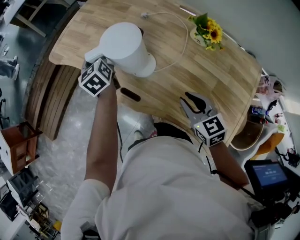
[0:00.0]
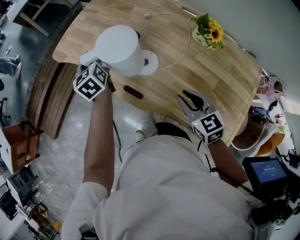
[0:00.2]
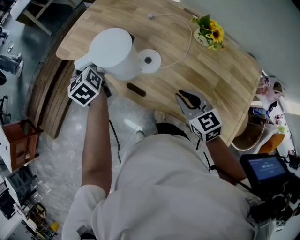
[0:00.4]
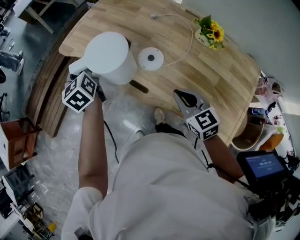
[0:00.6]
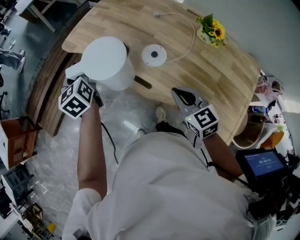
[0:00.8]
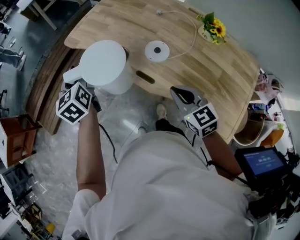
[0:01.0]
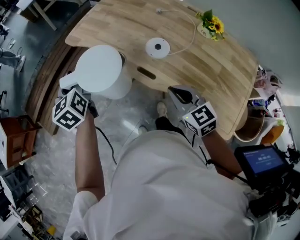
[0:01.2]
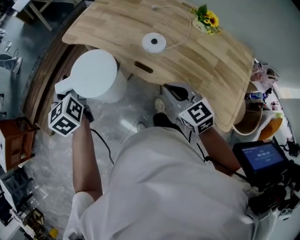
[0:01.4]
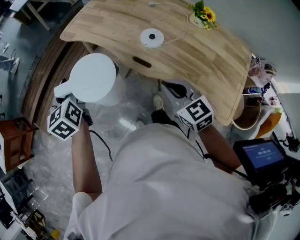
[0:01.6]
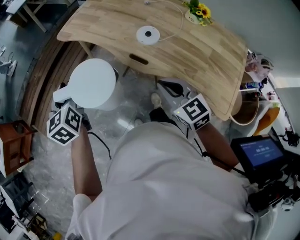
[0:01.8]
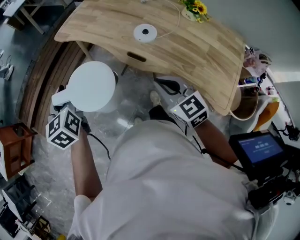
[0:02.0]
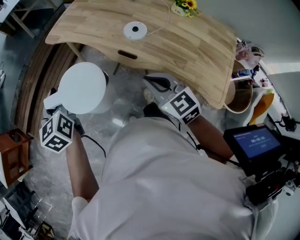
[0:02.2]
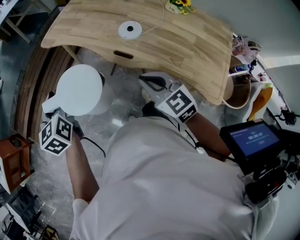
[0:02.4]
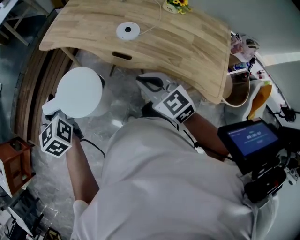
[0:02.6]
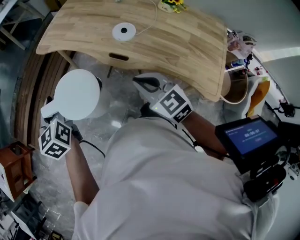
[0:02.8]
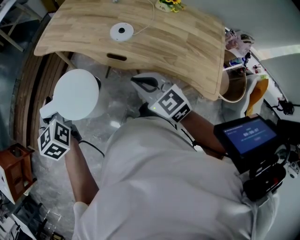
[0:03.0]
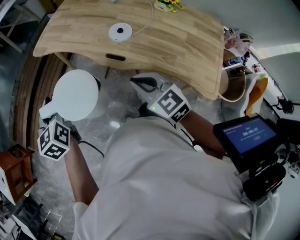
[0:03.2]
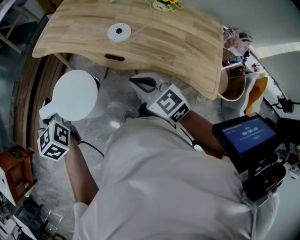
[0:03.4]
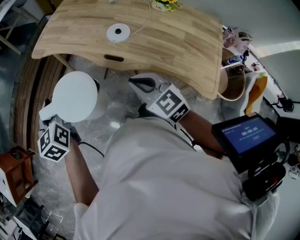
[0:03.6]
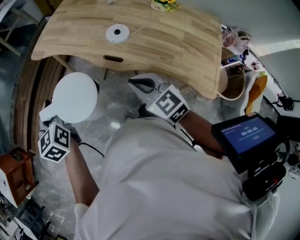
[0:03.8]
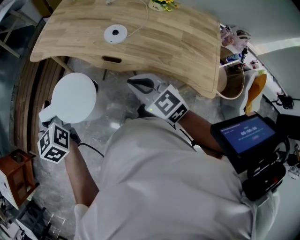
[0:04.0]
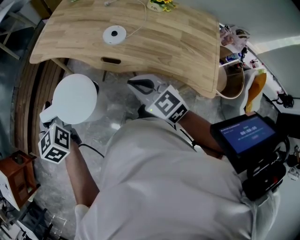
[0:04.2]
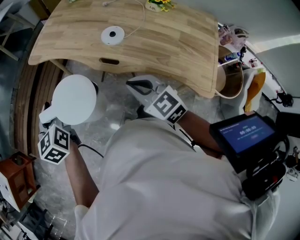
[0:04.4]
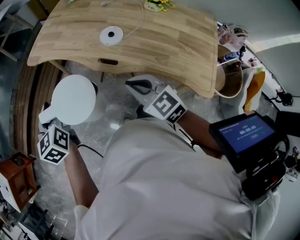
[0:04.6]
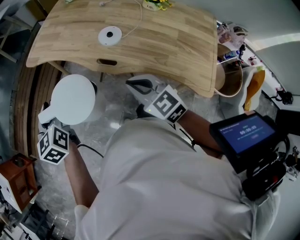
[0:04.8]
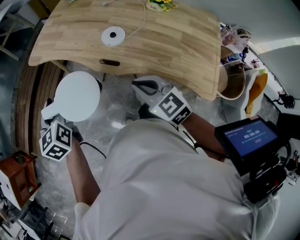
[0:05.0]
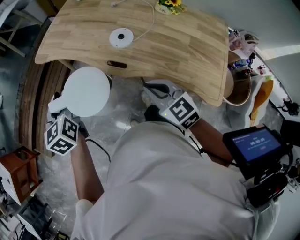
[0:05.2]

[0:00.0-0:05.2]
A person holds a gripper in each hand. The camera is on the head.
0:00.0 to 0:01.8: The right gripper heads to the left, covering some 20 cm, and closes up. Meanwhile the left gripper goes some 35 cm to the left and backward.
0:01.8 to 0:03.4: The right gripper moves to the left, about 5 cm.
0:03.4 to 0:05.2: The grippers both shift to the right by roughly 5 cm.

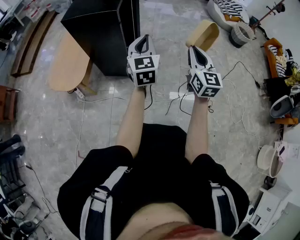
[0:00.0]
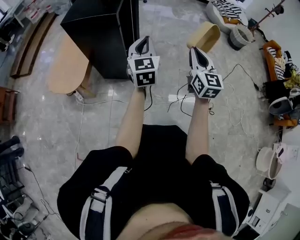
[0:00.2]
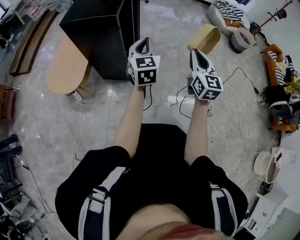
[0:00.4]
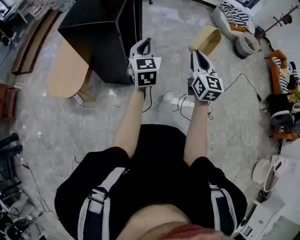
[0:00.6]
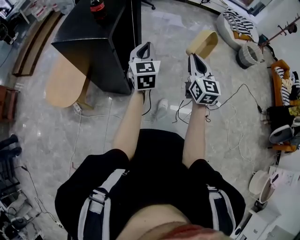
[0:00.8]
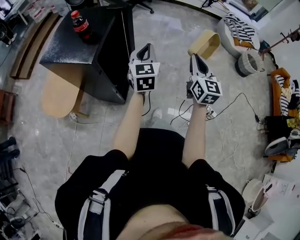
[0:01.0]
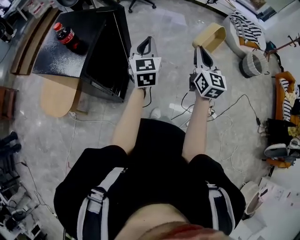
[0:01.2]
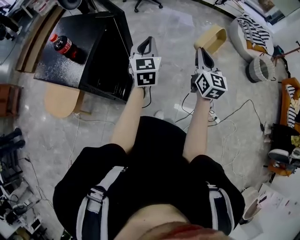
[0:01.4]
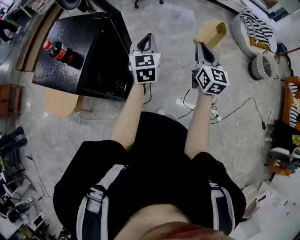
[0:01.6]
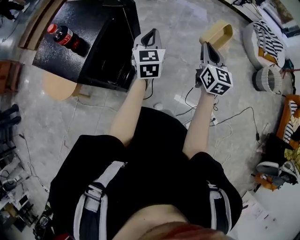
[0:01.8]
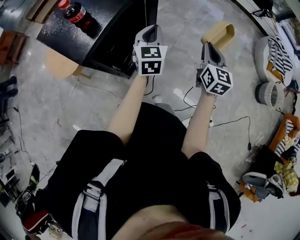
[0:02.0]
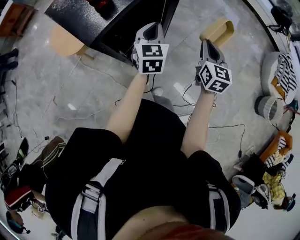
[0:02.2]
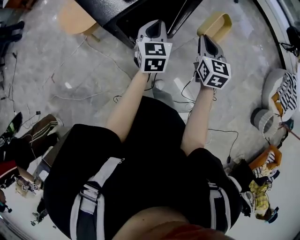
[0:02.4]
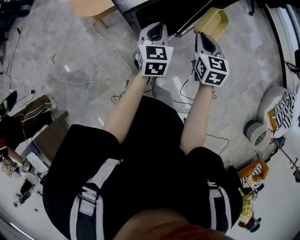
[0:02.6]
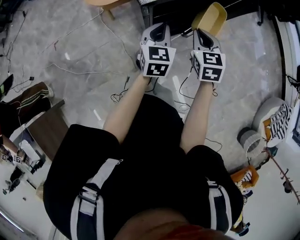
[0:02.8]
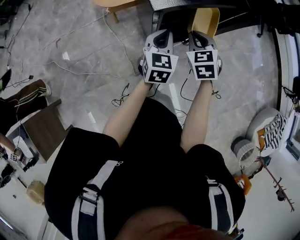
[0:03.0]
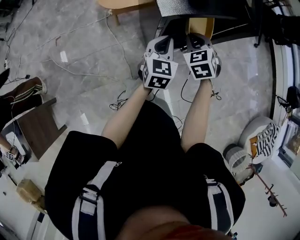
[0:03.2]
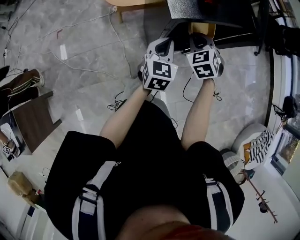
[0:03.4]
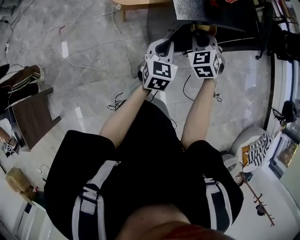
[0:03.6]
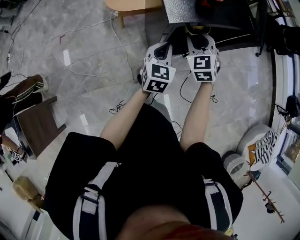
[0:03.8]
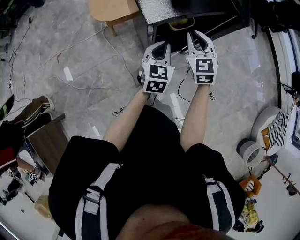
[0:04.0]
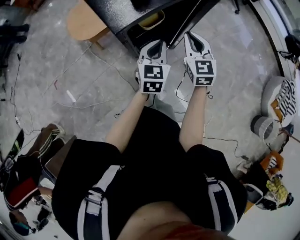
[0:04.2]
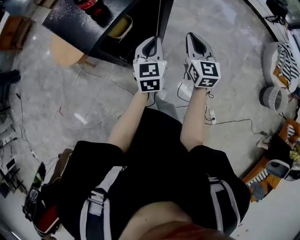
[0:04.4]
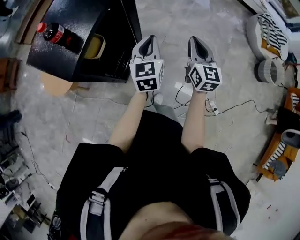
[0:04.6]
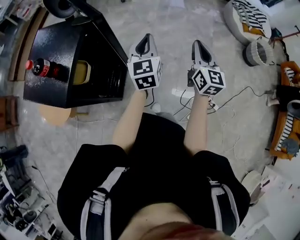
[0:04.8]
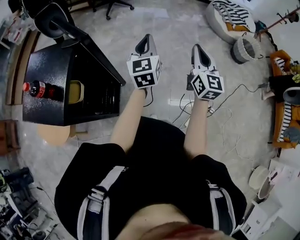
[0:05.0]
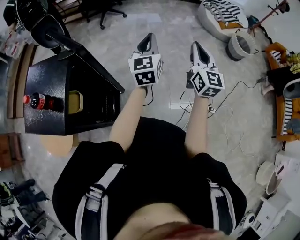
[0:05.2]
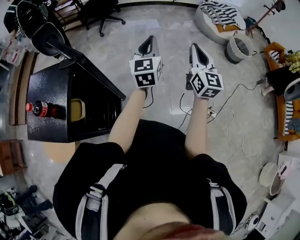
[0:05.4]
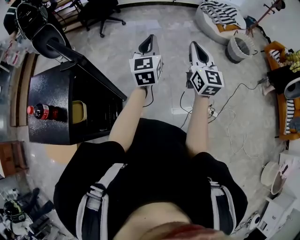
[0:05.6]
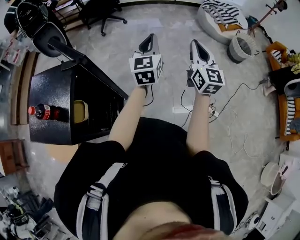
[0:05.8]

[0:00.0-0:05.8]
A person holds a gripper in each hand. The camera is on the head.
0:00.0 to 0:01.4: The two grippers travel together, forward, some 50 cm.
0:01.4 to 0:02.8: The right gripper ends up approximately 40 cm from where it was, and swivels about 70 degrees. Meanwhile the left gripper shifts by approximately 30 cm, and changes its angle by approximately 50 degrees.
0:02.8 to 0:04.4: The left gripper shifts by about 15 cm, and rotates some 30 degrees. Meanwhile the right gripper shifts by roughly 20 cm, and rotates roughly 40 degrees.
0:04.4 to 0:05.8: The left gripper changes place by about 35 cm, and turns by approximately 40 degrees. The right gripper shifts by roughly 35 cm, and rotates about 40 degrees.

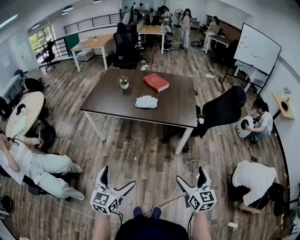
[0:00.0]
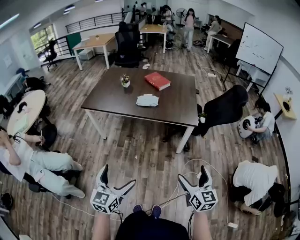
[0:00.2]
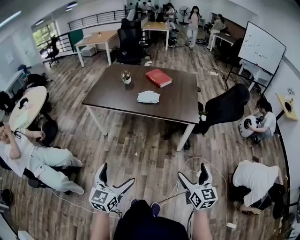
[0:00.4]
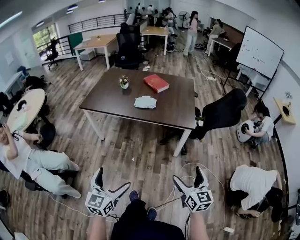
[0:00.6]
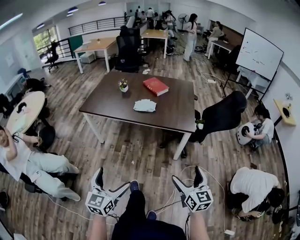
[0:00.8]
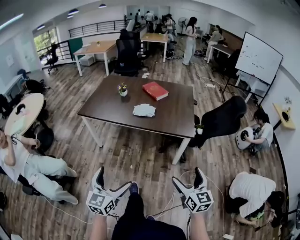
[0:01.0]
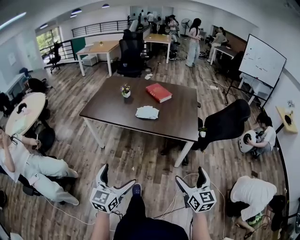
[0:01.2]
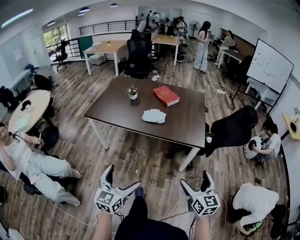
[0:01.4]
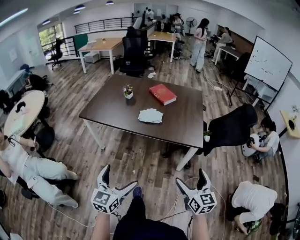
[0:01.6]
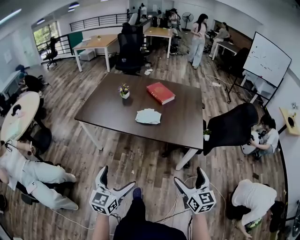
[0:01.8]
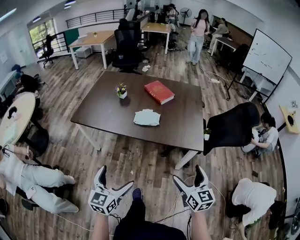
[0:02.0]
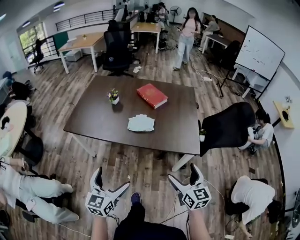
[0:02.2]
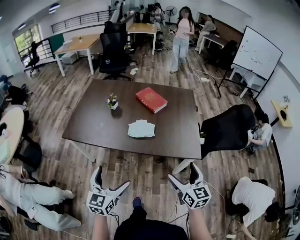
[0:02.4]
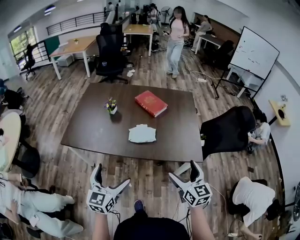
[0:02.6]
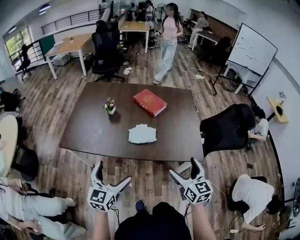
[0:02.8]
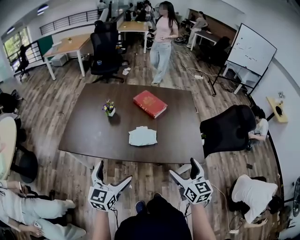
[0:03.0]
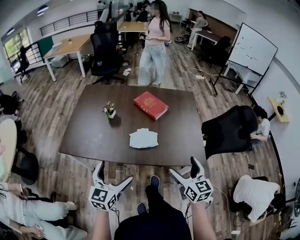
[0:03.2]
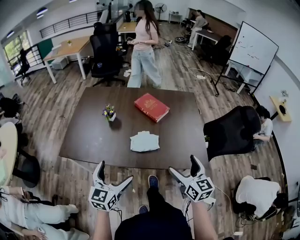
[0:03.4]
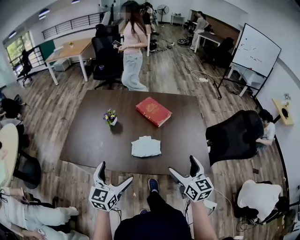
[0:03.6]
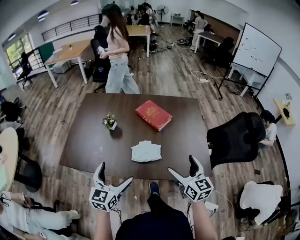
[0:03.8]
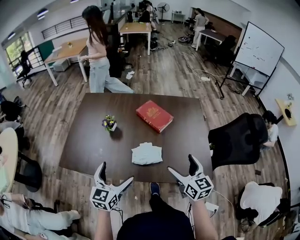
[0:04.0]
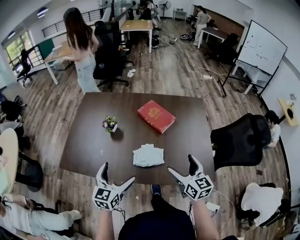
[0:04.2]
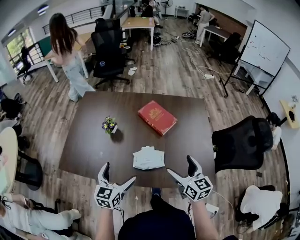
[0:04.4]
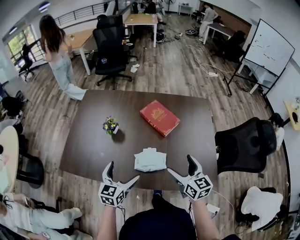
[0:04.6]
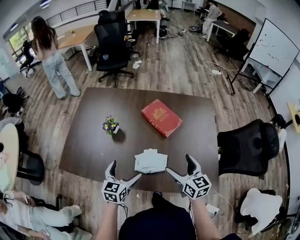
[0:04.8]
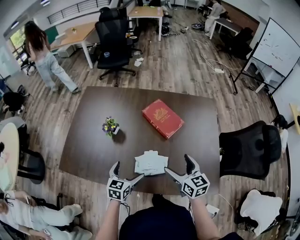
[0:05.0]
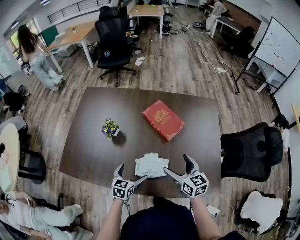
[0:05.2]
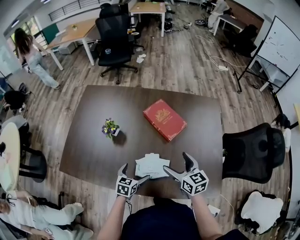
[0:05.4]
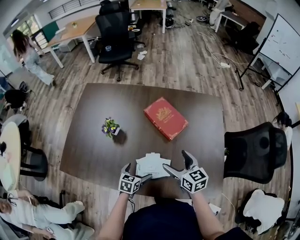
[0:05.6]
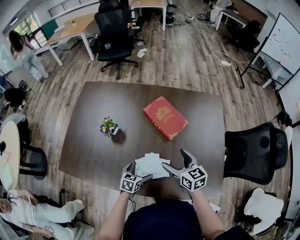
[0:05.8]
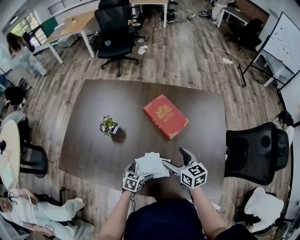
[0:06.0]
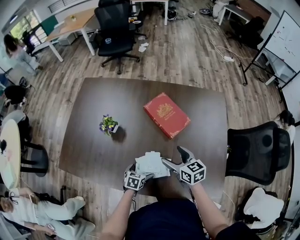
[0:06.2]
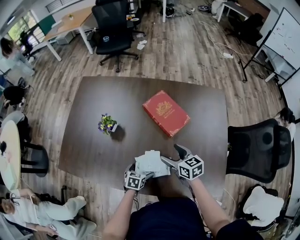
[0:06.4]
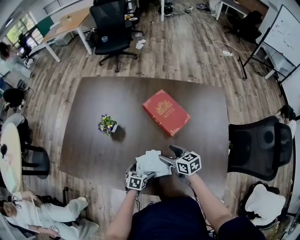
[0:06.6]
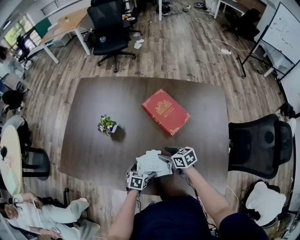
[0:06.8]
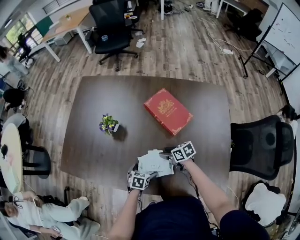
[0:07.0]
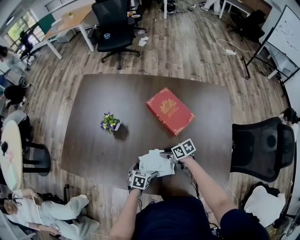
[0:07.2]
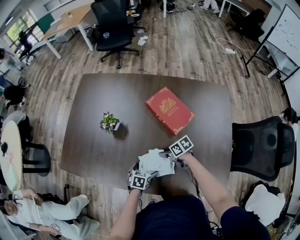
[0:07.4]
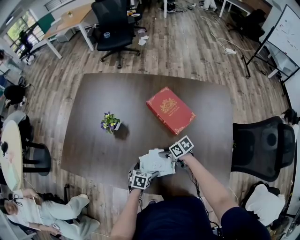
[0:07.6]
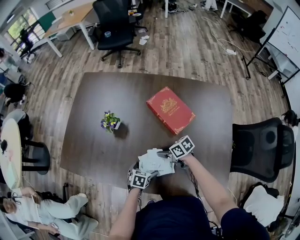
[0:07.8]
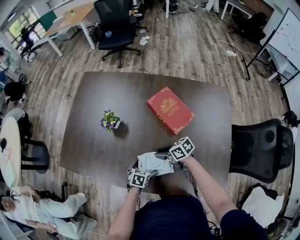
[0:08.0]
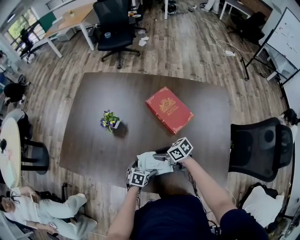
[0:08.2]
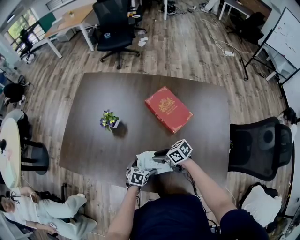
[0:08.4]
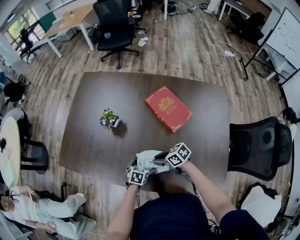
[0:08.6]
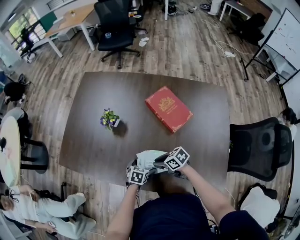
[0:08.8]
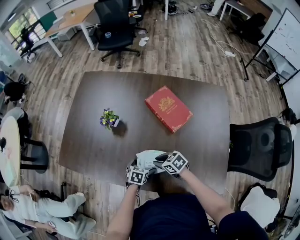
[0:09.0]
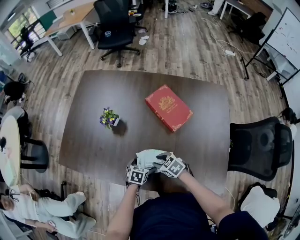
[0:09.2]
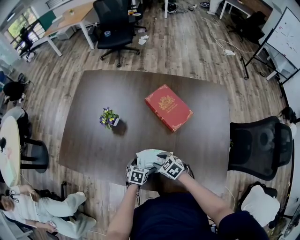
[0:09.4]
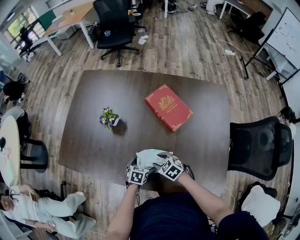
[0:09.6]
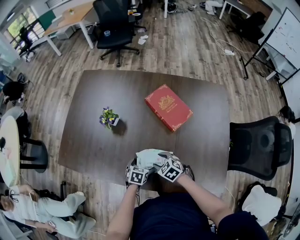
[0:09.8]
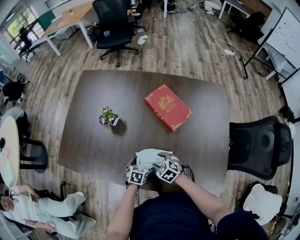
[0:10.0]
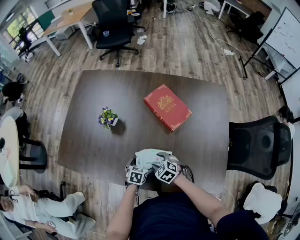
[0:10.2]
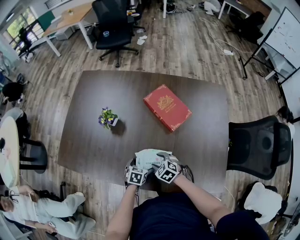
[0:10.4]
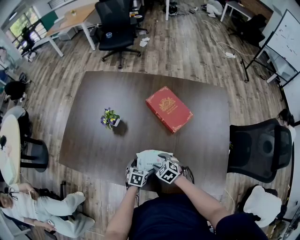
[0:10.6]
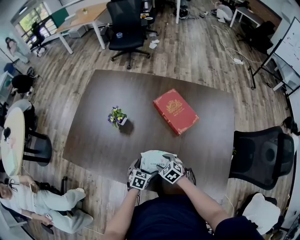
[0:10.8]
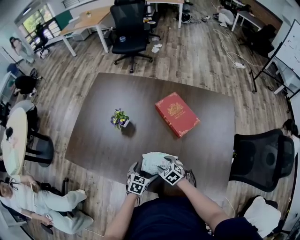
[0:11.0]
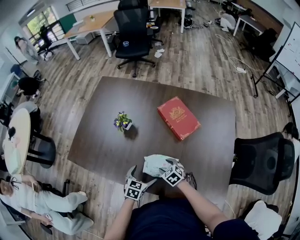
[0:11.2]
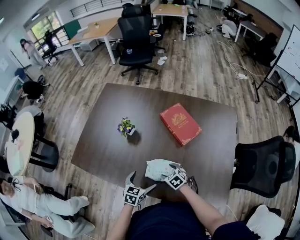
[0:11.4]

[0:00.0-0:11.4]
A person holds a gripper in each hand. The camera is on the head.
0:00.0 to 0:01.4: Both grippers travel together forward, approximately 10 cm.
0:01.4 to 0:02.8: Both grippers travel together forward, roughly 30 cm.
0:02.8 to 0:04.2: The two grippers go some 20 cm forward.
0:04.2 to 0:05.6: The left gripper shifts roughly 30 cm downward and forward, and swivels some 30 degrees, while the right gripper travels forward and downward by approximately 20 cm.
0:05.6 to 0:07.2: The left gripper goes some 10 cm downward; the right gripper is displaced downward by approximately 20 cm, turns by some 50 degrees, and closes.
0:07.2 to 0:08.6: The right gripper changes place by roughly 10 cm.
0:08.6 to 0:10.0: The right gripper turns by some 50 degrees.
0:10.0 to 0:11.4: The left gripper heads upward, covering roughly 10 cm.

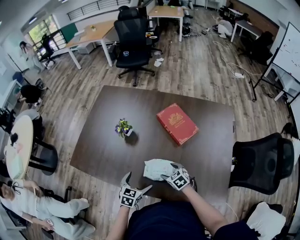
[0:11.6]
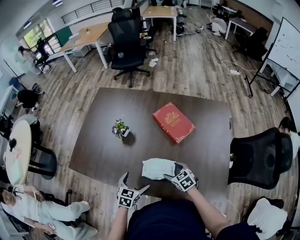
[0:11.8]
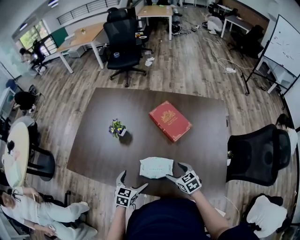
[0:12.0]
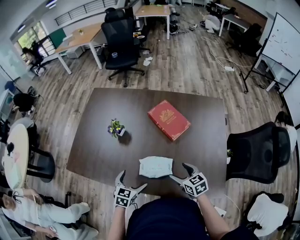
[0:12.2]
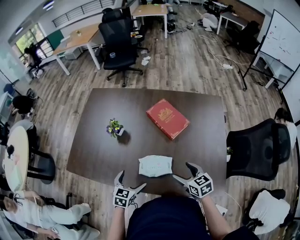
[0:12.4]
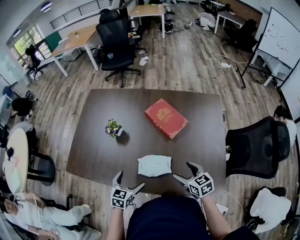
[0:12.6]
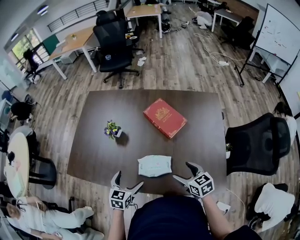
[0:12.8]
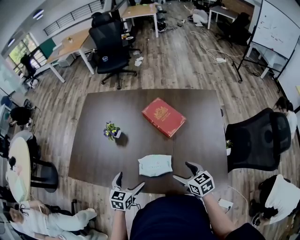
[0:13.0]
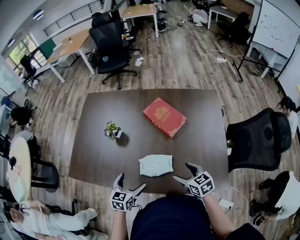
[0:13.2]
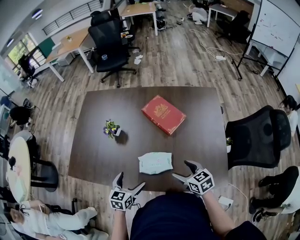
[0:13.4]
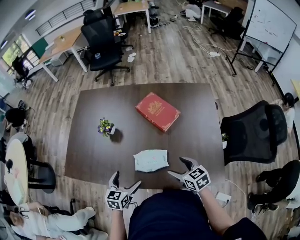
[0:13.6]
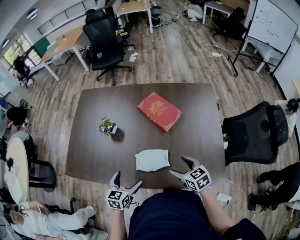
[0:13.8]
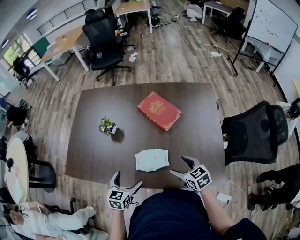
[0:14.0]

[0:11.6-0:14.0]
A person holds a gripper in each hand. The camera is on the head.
0:11.6 to 0:12.8: The right gripper is displaced upward, to the right and backward by roughly 20 cm, and changes its angle by roughly 30 degrees; the left gripper heads upward, covering approximately 5 cm.
0:12.8 to 0:14.0: There are only small adjustments of the grippers.
